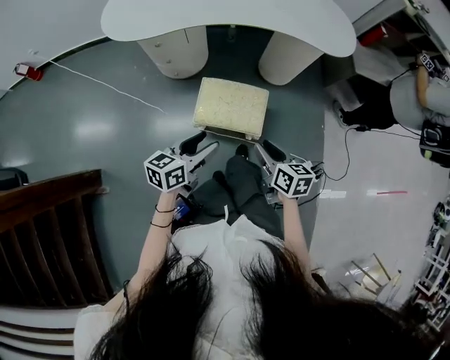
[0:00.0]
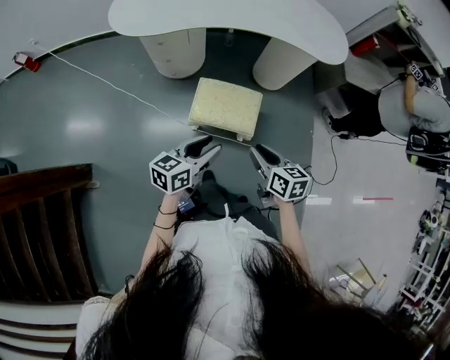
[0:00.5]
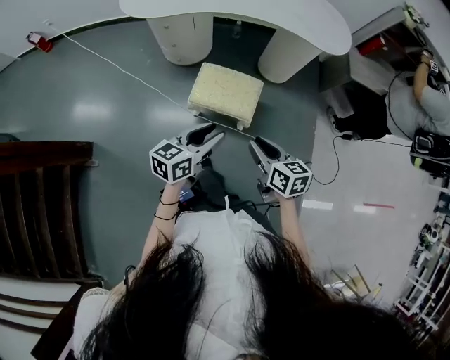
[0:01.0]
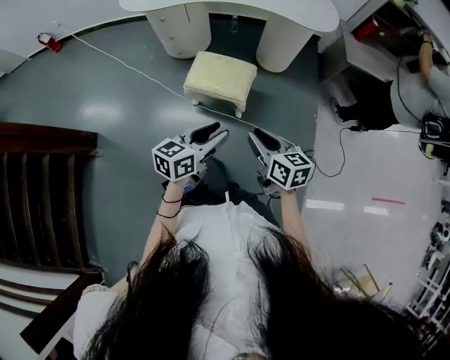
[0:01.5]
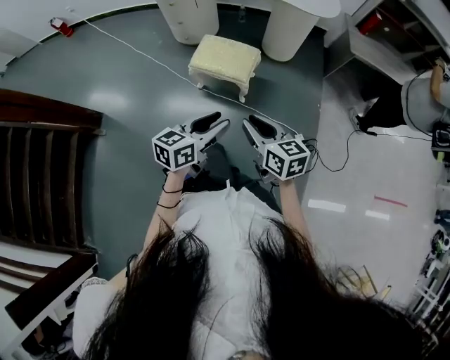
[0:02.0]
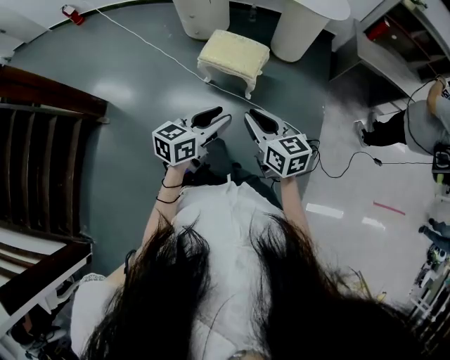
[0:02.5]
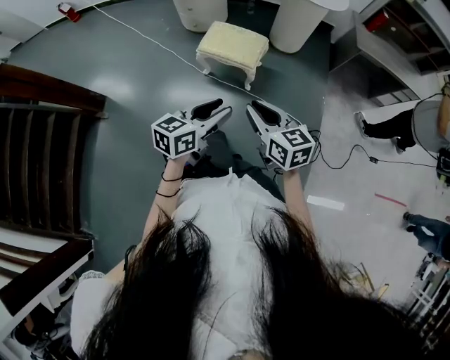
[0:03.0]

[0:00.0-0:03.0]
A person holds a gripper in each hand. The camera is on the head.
0:00.0 to 0:01.5: Both grippers move backward, to the right and upward, about 25 cm.
0:01.5 to 0:03.0: Both grippers move backward, roughly 15 cm.

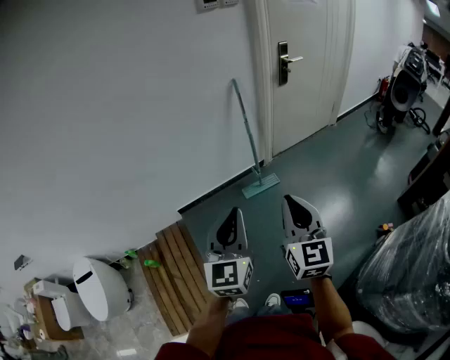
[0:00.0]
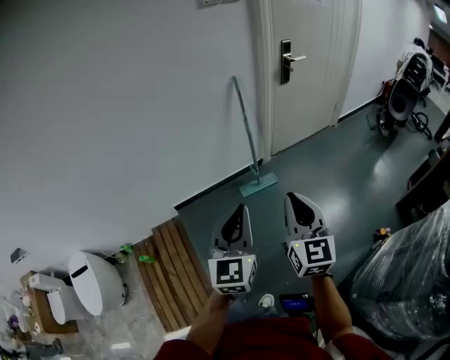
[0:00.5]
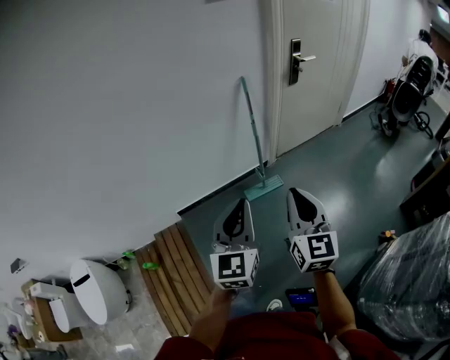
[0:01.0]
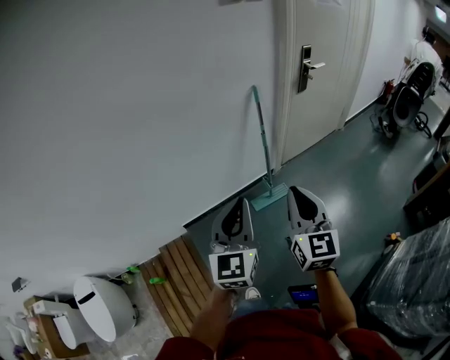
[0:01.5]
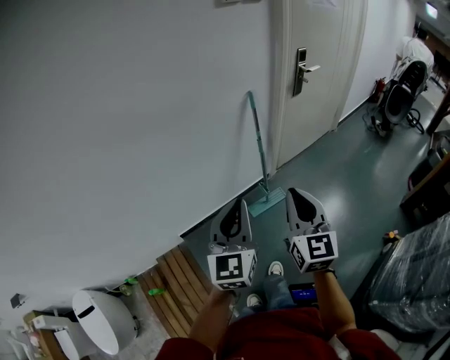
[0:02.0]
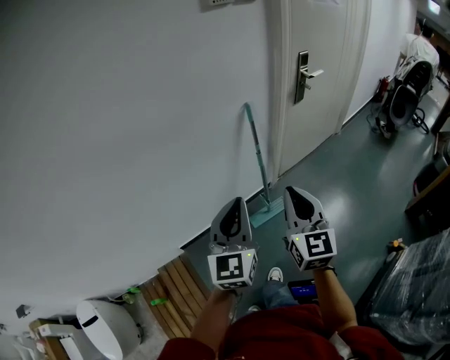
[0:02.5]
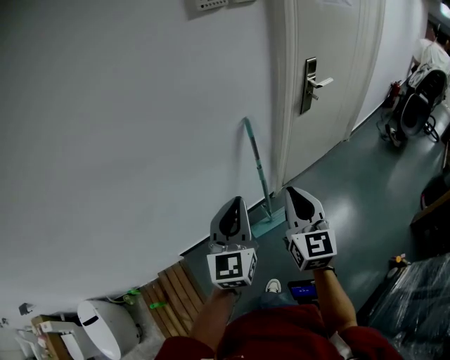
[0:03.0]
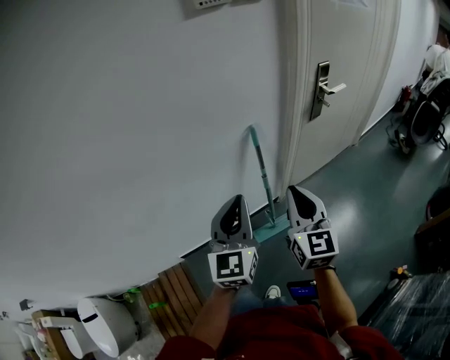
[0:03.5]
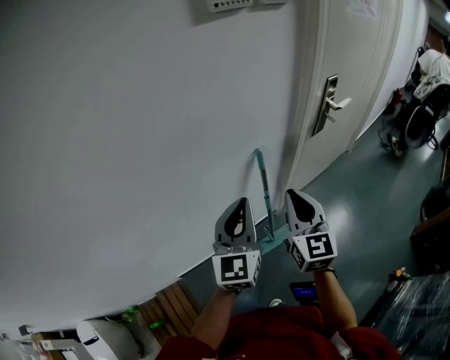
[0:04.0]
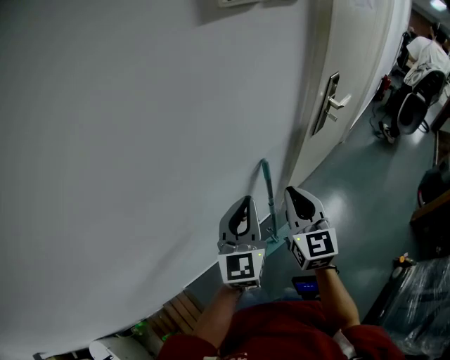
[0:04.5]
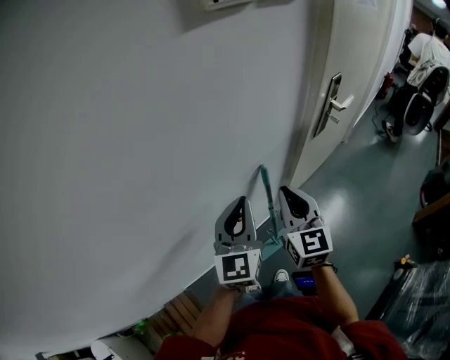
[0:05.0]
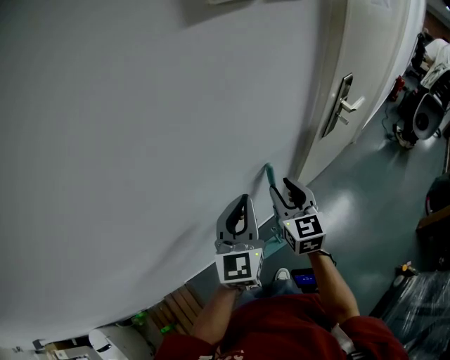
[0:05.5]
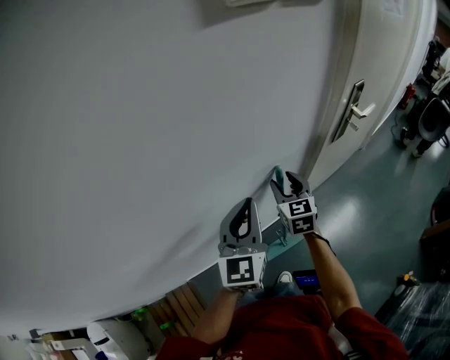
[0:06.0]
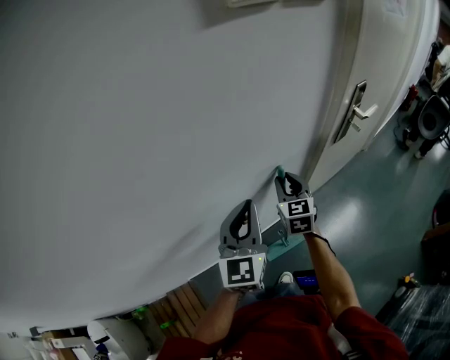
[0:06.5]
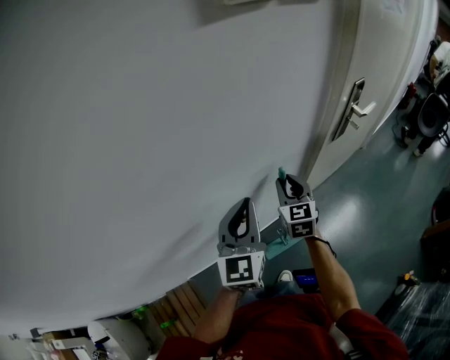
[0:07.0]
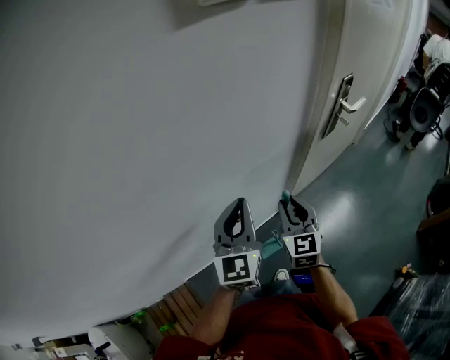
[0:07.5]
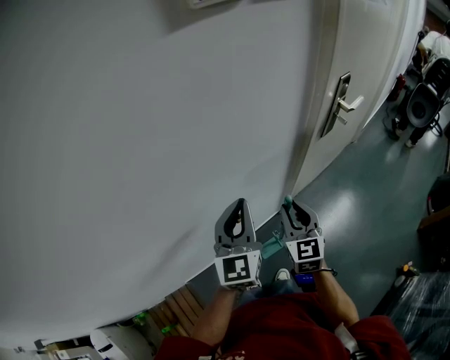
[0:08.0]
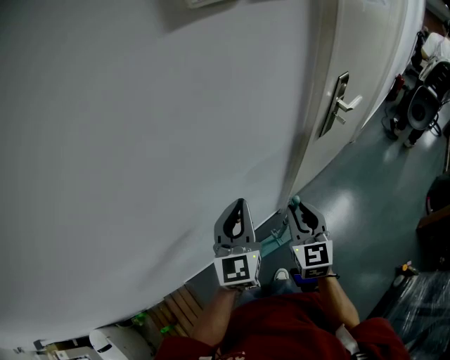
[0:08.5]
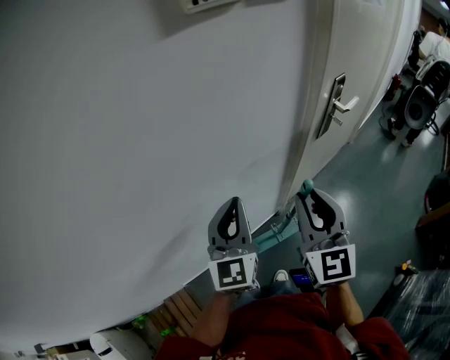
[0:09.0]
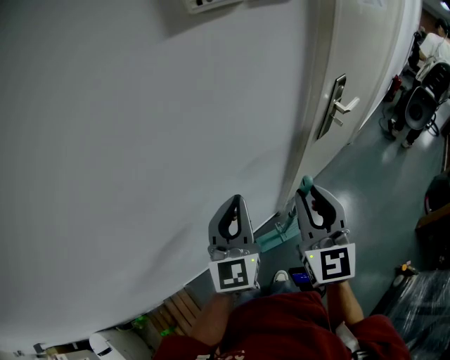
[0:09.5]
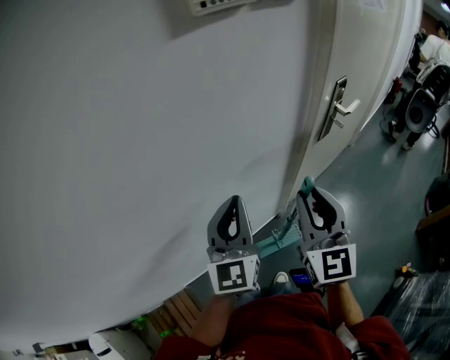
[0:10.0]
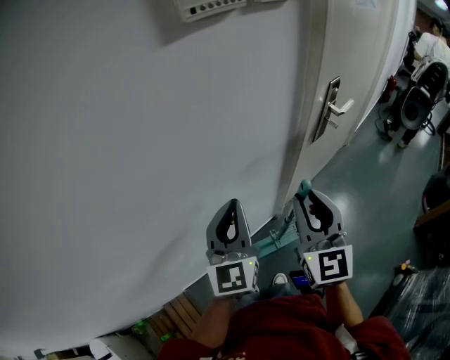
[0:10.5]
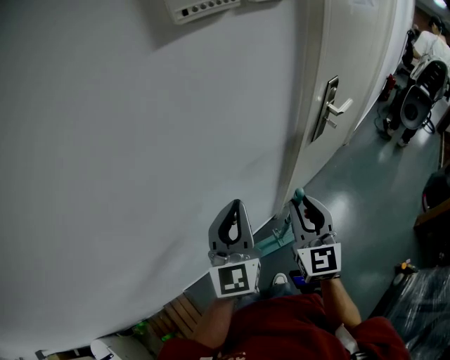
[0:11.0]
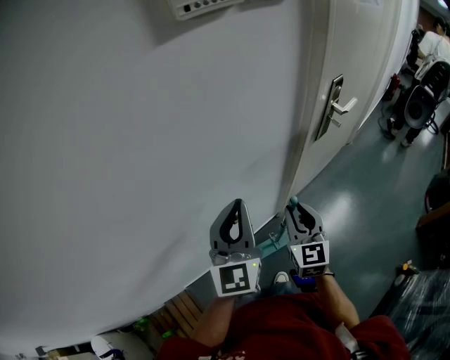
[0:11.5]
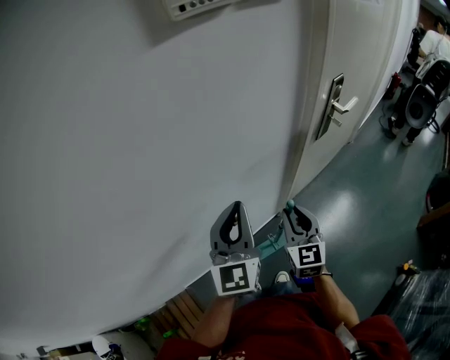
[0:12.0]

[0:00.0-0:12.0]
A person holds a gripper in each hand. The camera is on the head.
0:00.0 to 0:02.0: Both grippers move forward and to the left, some 25 cm.
0:02.0 to 0:04.0: The pair of grippers is taken forward, some 40 cm.
0:04.0 to 0:06.0: The left gripper goes some 10 cm forward; the right gripper shifts approximately 20 cm forward and downward, and opens its fingers.
0:06.0 to 0:08.0: The right gripper travels backward by approximately 10 cm, and closes up.
0:08.0 to 0:10.0: The right gripper heads upward, covering roughly 15 cm. Meanwhile the left gripper goes roughly 5 cm upward.
0:10.0 to 0:12.0: The right gripper heads downward, covering some 15 cm.

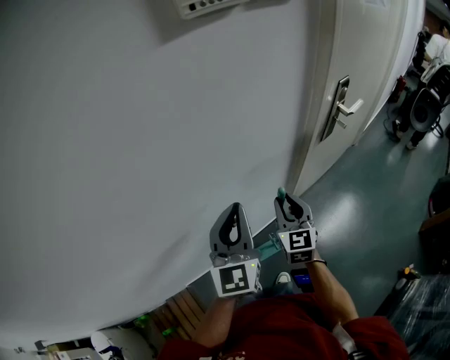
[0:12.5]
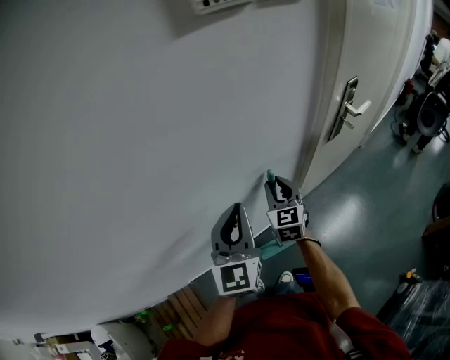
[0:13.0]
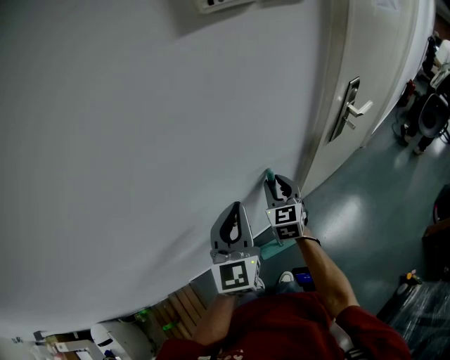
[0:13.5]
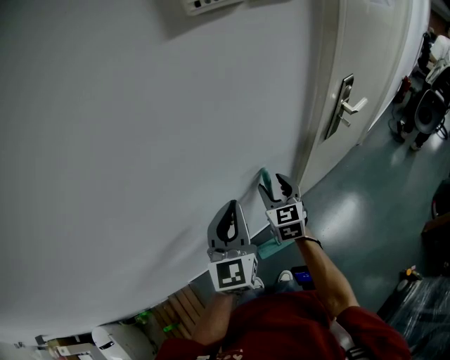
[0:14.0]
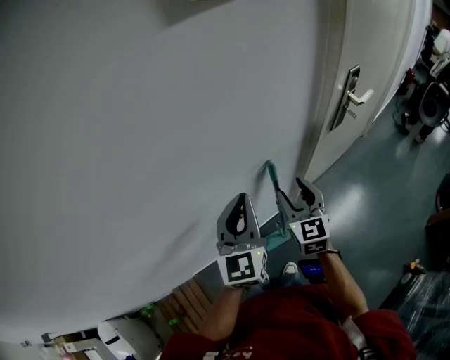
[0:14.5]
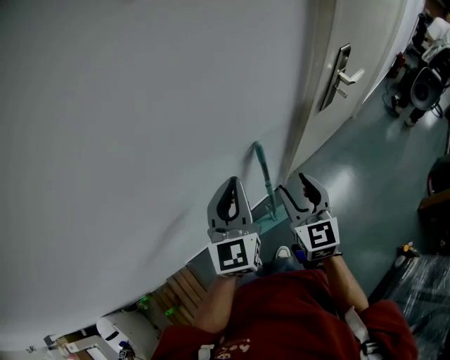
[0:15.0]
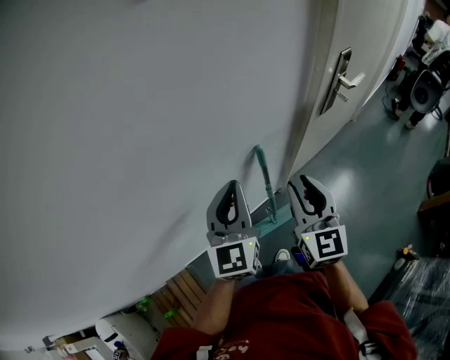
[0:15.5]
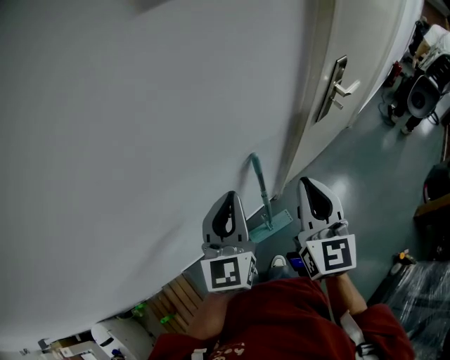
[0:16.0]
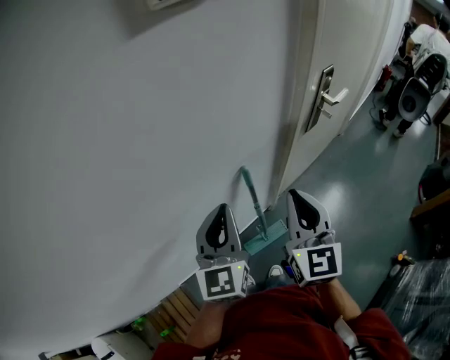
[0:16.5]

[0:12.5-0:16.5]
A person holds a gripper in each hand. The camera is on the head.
0:12.5 to 0:14.5: The right gripper opens.
0:14.5 to 0:16.5: The right gripper travels upward and backward by approximately 15 cm, and closes up.

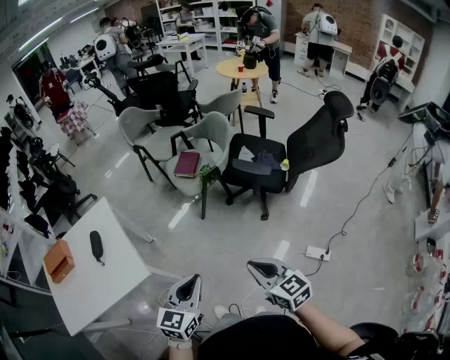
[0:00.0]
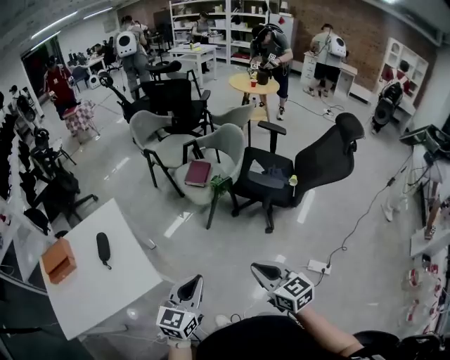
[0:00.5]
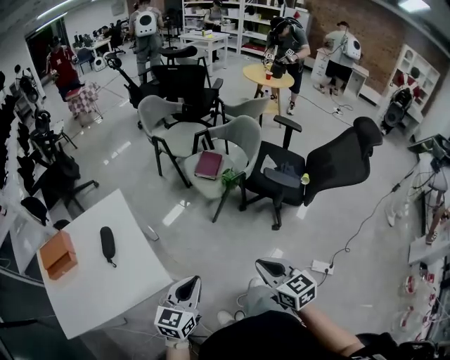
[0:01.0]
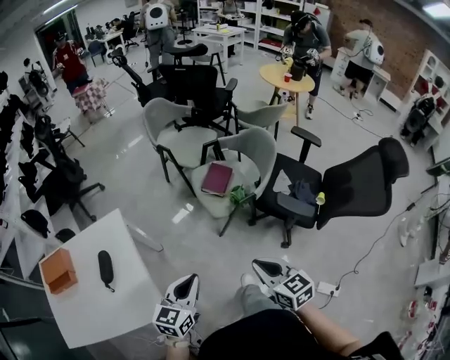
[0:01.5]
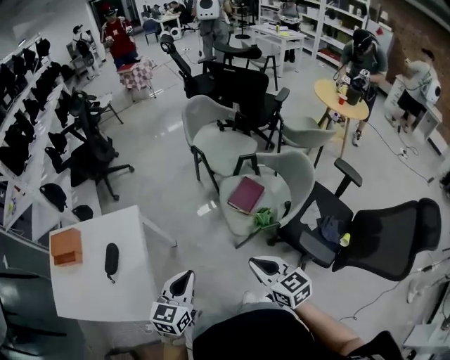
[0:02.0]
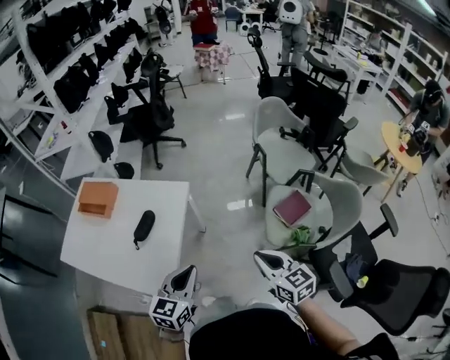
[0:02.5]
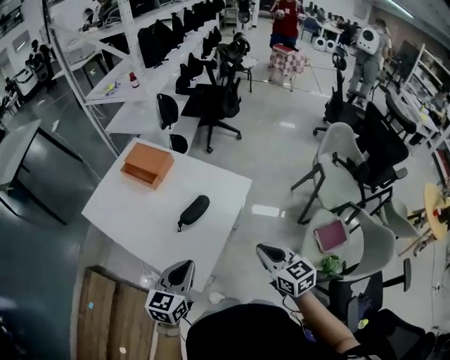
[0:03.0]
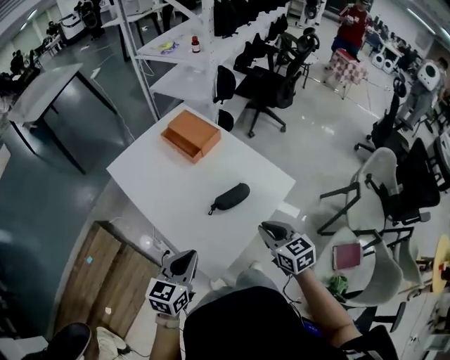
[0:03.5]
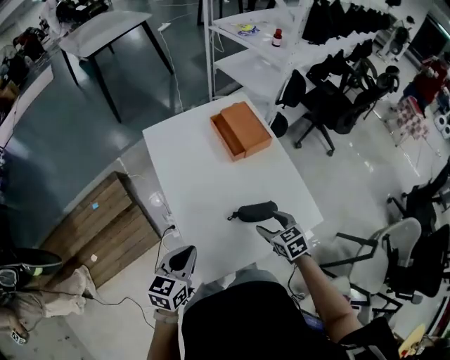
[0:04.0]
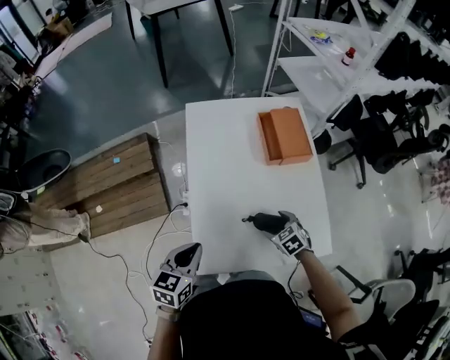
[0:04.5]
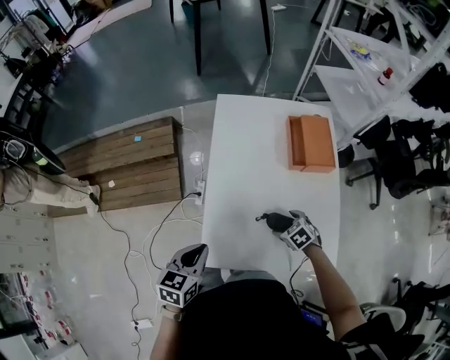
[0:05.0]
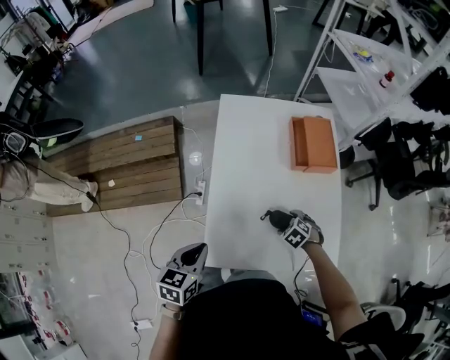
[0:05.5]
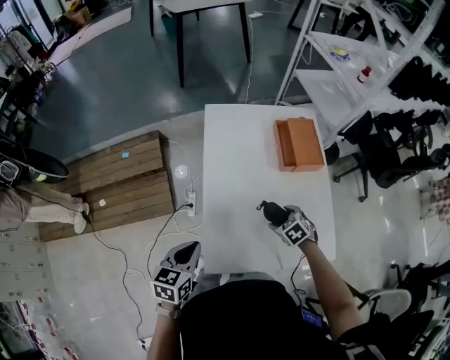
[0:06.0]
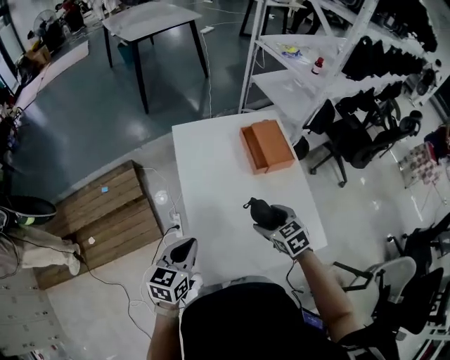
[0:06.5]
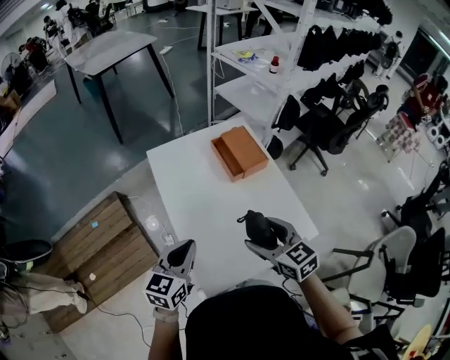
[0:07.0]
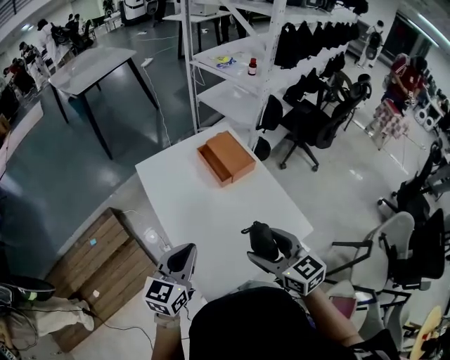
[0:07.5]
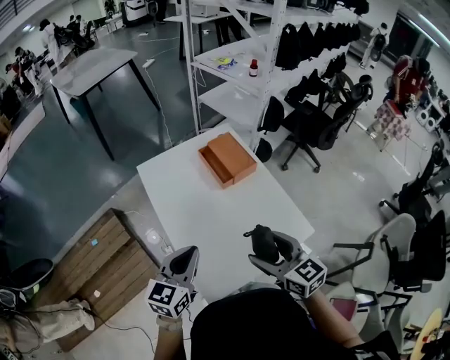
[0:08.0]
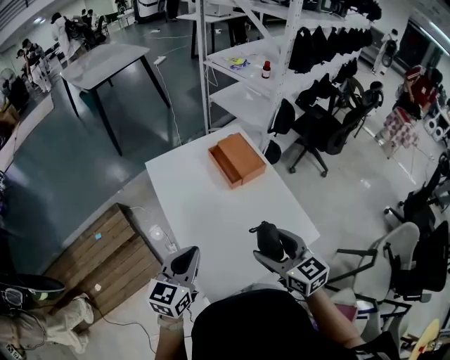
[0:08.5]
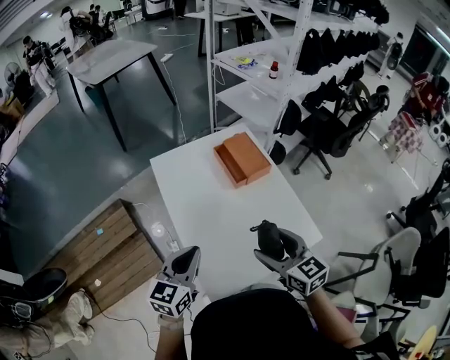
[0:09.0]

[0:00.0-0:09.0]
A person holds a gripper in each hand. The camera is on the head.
0:00.0 to 0:02.0: The left gripper changes place by some 40 cm, and rotates roughly 30 degrees, while the right gripper changes place by some 40 cm, and changes its angle by approximately 20 degrees.
0:02.0 to 0:04.5: The pair of grippers is taken some 60 cm. The left gripper rotates about 90 degrees. Meanwhile the right gripper points its fingers roughly 40 degrees further downward, and opens its fingers.
0:04.5 to 0:07.0: The left gripper travels upward by some 10 cm, and rotates about 20 degrees. The right gripper shifts some 25 cm upward, and tilts its fingers approximately 30 degrees upward.
0:07.0 to 0:09.0: The grippers move only a little.
